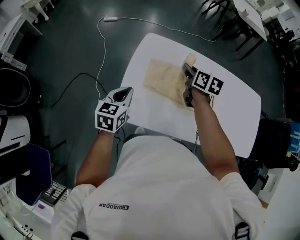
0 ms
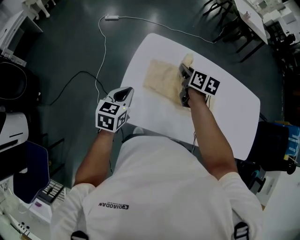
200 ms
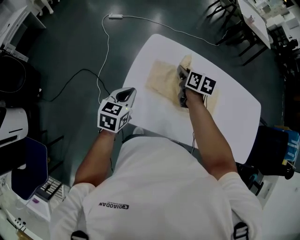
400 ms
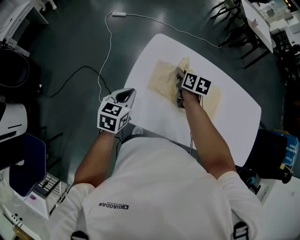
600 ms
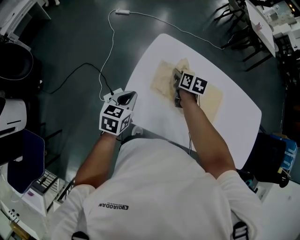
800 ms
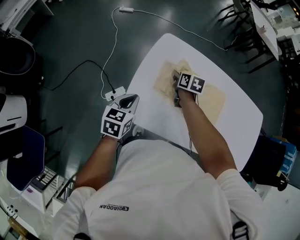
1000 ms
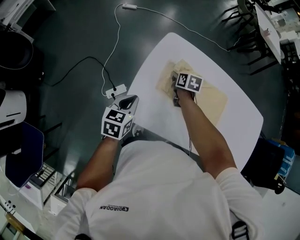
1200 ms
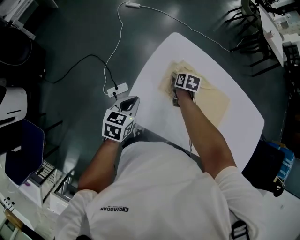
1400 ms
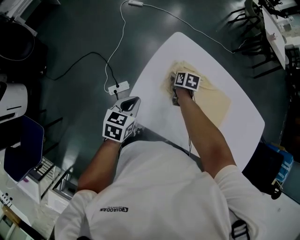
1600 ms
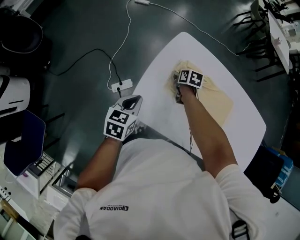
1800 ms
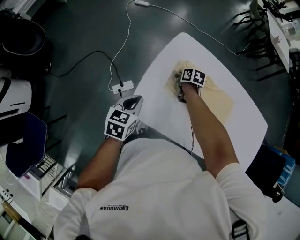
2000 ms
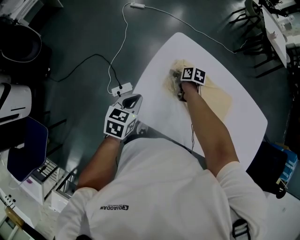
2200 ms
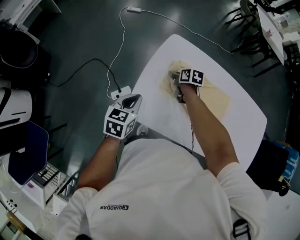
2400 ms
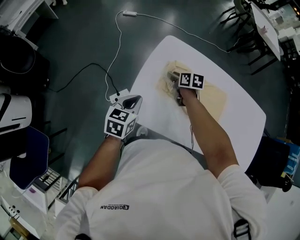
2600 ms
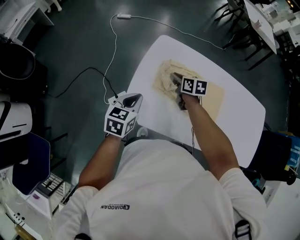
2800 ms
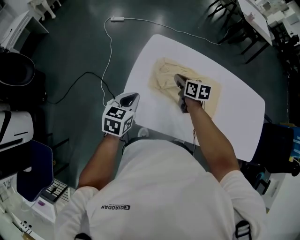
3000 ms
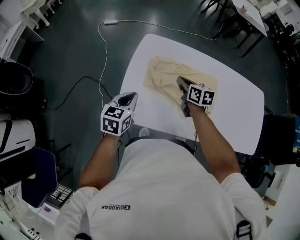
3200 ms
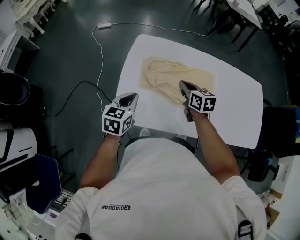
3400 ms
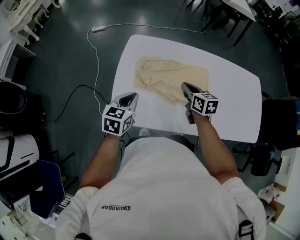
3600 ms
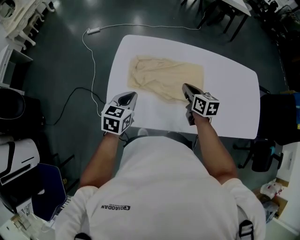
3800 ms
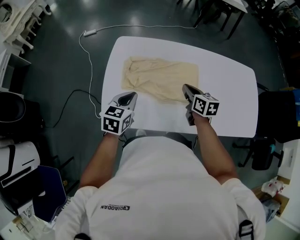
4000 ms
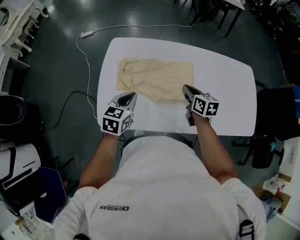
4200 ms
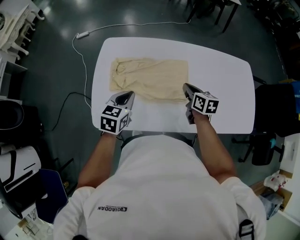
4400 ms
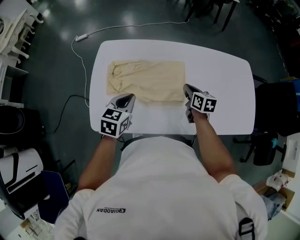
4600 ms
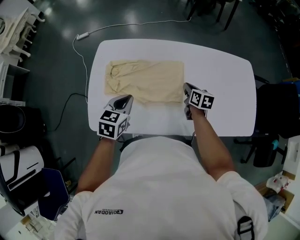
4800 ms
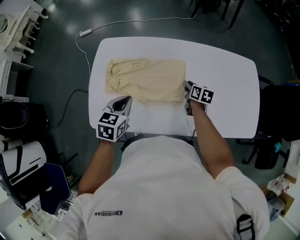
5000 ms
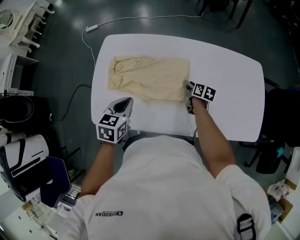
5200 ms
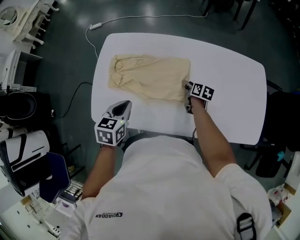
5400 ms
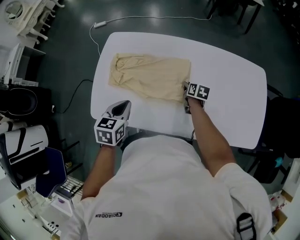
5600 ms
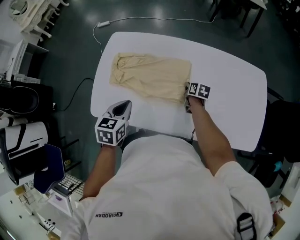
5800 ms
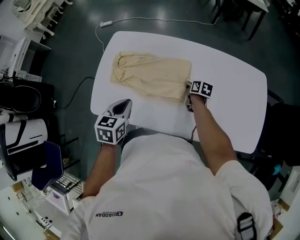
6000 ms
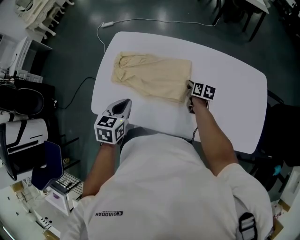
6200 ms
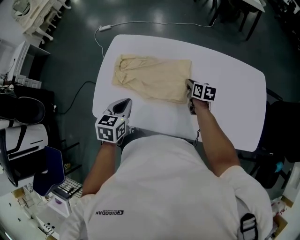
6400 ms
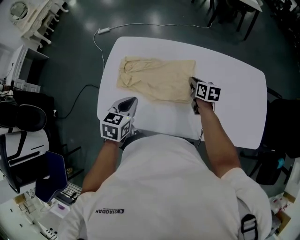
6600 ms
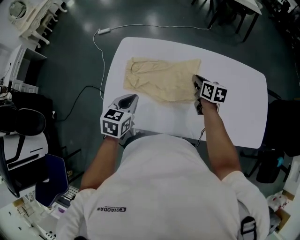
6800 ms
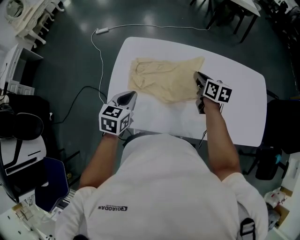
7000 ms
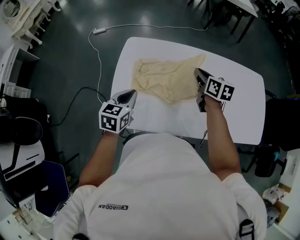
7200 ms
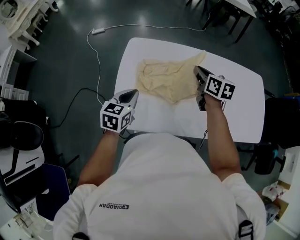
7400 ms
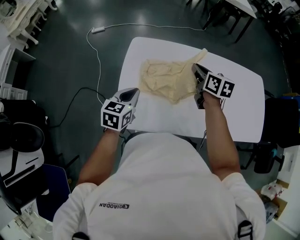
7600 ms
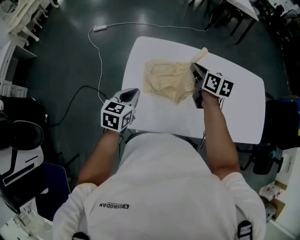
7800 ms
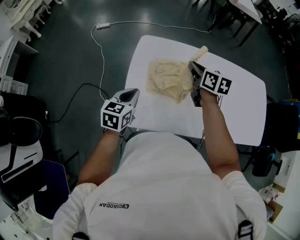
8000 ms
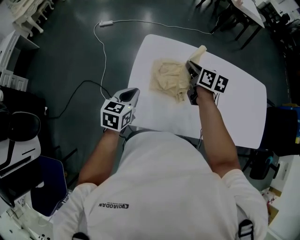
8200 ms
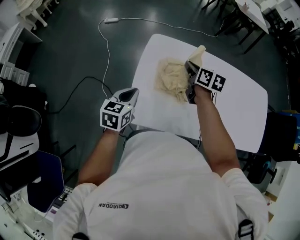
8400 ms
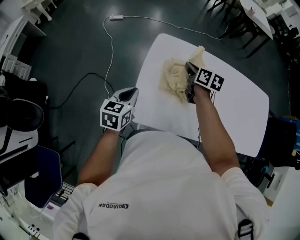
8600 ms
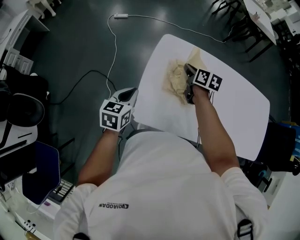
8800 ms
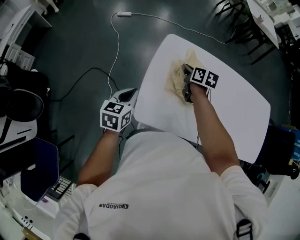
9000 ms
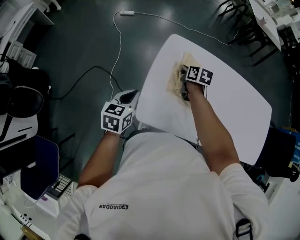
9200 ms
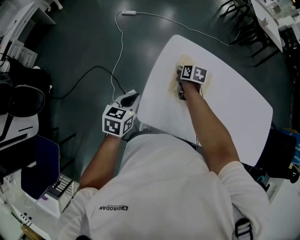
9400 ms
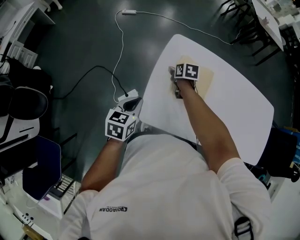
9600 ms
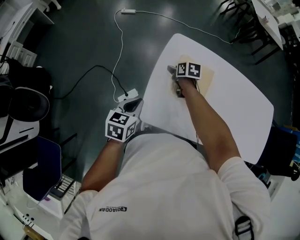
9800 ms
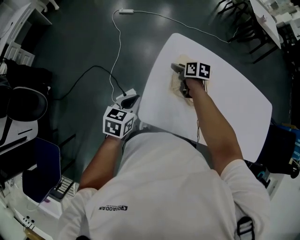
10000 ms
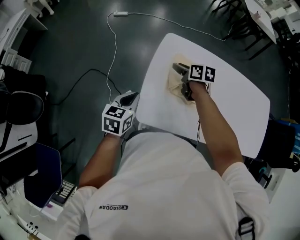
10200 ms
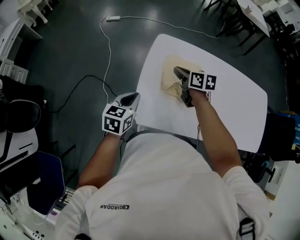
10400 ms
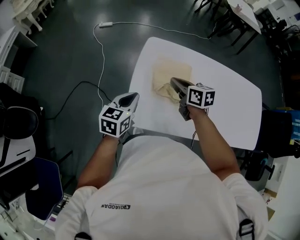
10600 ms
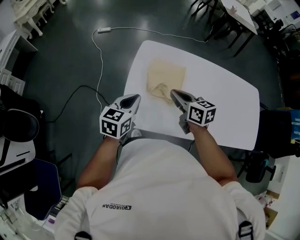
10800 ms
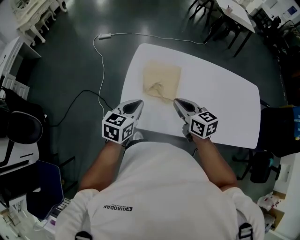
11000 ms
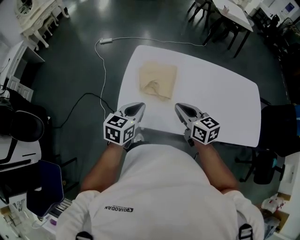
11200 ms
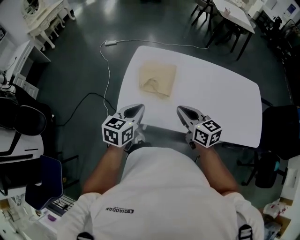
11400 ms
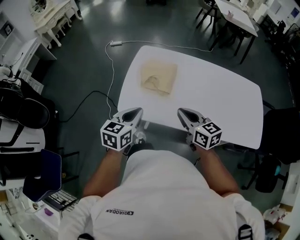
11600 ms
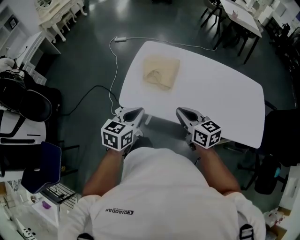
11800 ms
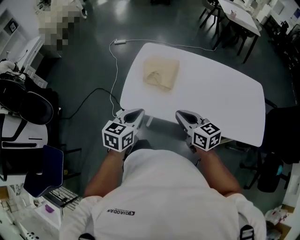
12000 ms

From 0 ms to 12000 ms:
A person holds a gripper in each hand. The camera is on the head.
From 0 ms to 1600 ms: The left gripper heads downward, covering approximately 5 cm; the right gripper moves downward and to the left, roughly 25 cm, and changes its angle by approximately 30 degrees.
From 1600 ms to 3000 ms: The left gripper shifts by approximately 5 cm. The right gripper travels upward, backward and to the right by about 15 cm, changes its angle by roughly 20 degrees, and closes its fingers.
From 3000 ms to 4400 ms: Both grippers move to the right, roughly 25 cm.
From 4400 ms to 6000 ms: The right gripper heads downward, to the right and forward, covering roughly 20 cm, and opens and closes again. The left gripper is displaced to the right and backward by about 10 cm.
From 6000 ms to 7600 ms: The right gripper goes roughly 35 cm upward and to the left, and changes its angle by roughly 30 degrees; the left gripper shifts approximately 20 cm to the left.
From 7600 ms to 9000 ms: The left gripper shifts some 15 cm to the left; the right gripper moves to the left and downward, some 20 cm.
From 9000 ms to 10400 ms: The right gripper reaches about 10 cm downward, then returns, and opens, then closes once more.
From 10400 ms to 12000 ms: The right gripper heads backward and to the right, covering some 40 cm, and changes its angle by roughly 20 degrees. The left gripper goes roughly 30 cm backward, to the right and upward.

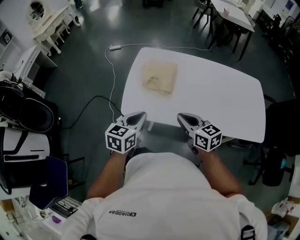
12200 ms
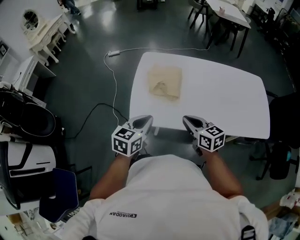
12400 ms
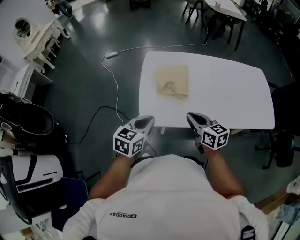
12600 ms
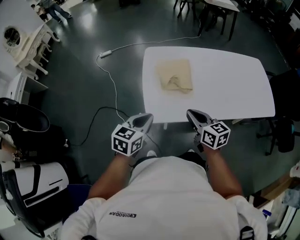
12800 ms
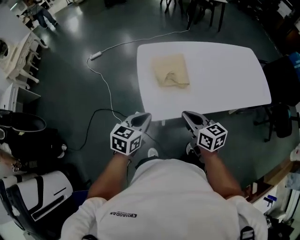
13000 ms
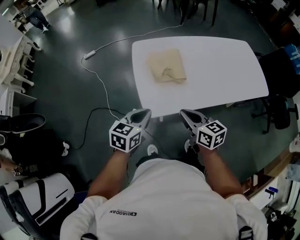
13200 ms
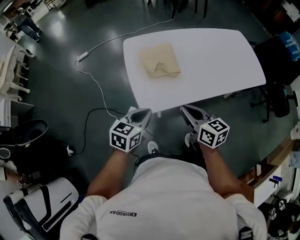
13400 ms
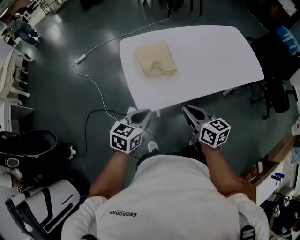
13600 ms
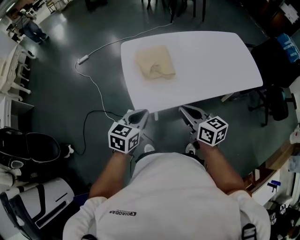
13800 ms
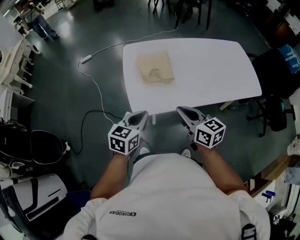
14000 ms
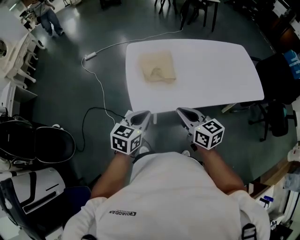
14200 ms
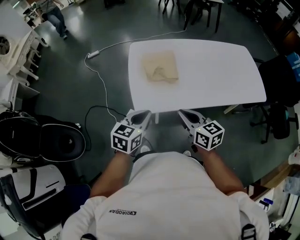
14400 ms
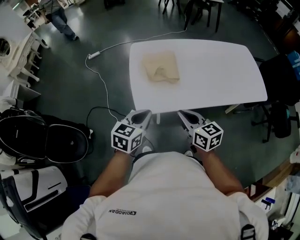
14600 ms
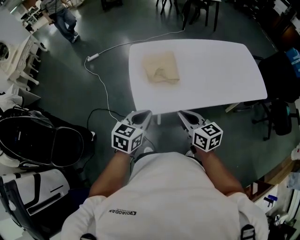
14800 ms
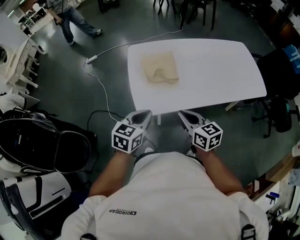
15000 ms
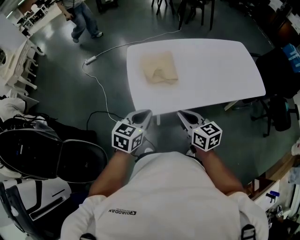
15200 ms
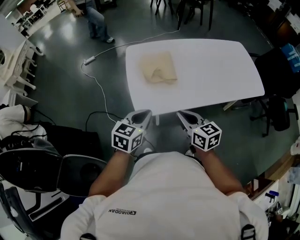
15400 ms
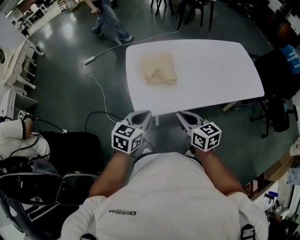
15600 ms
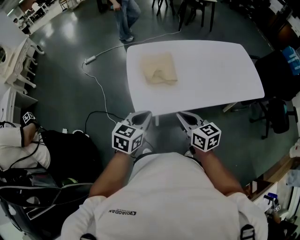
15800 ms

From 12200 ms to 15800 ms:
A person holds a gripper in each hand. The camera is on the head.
From 12200 ms to 14000 ms: The right gripper changes place by about 15 cm, and swivels about 20 degrees; the left gripper rotates some 20 degrees.
From 14000 ms to 15800 ms: The grippers stay close to where they were, moving slightly.

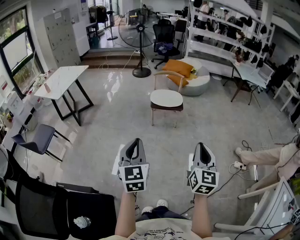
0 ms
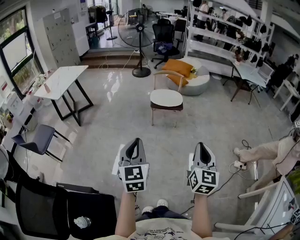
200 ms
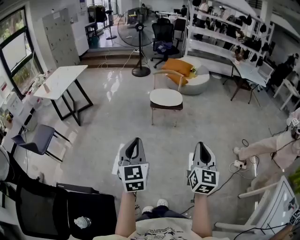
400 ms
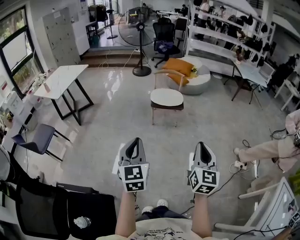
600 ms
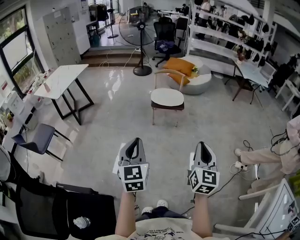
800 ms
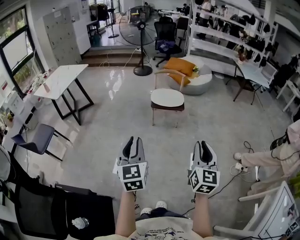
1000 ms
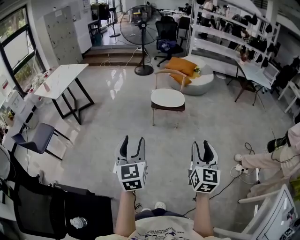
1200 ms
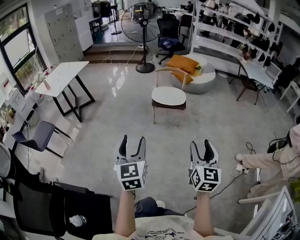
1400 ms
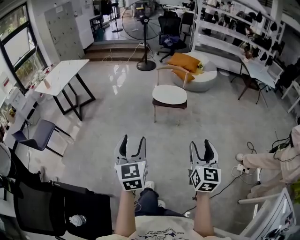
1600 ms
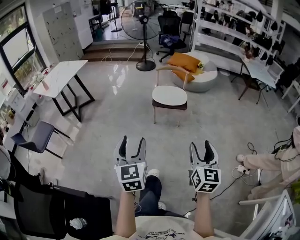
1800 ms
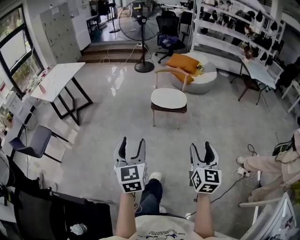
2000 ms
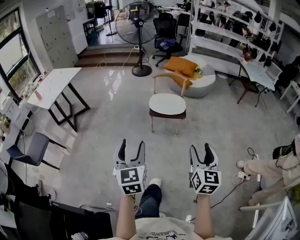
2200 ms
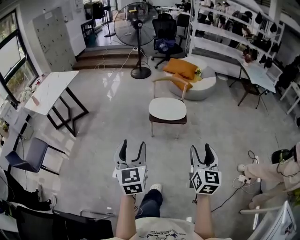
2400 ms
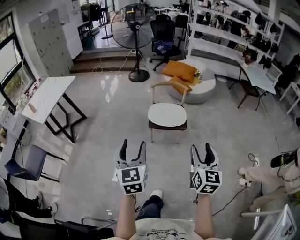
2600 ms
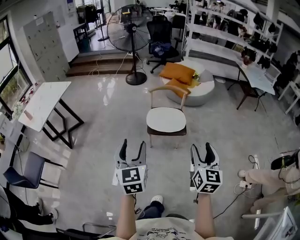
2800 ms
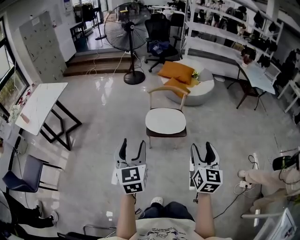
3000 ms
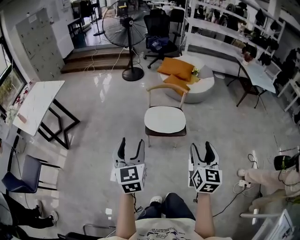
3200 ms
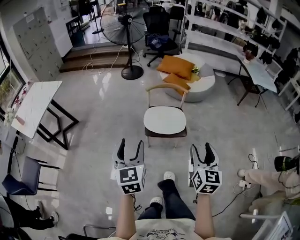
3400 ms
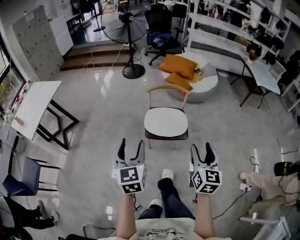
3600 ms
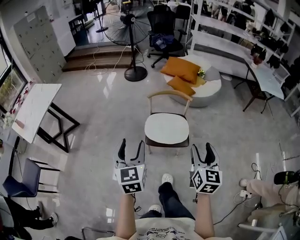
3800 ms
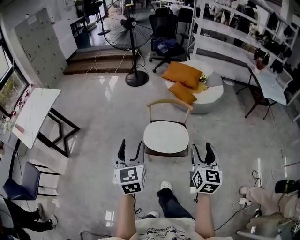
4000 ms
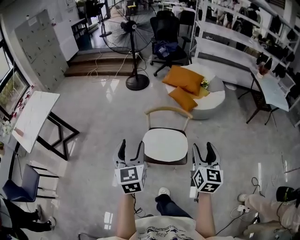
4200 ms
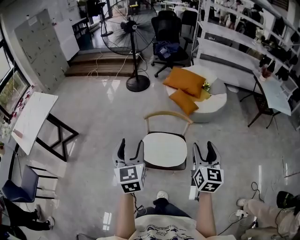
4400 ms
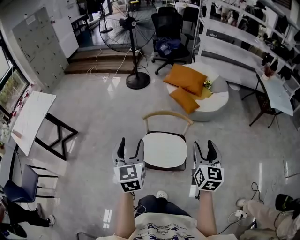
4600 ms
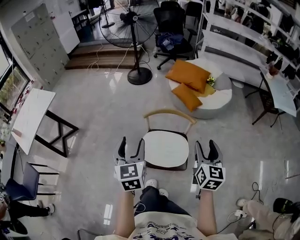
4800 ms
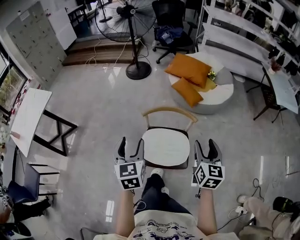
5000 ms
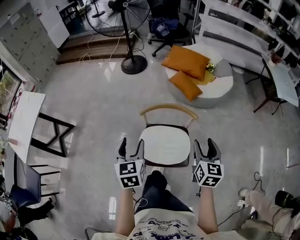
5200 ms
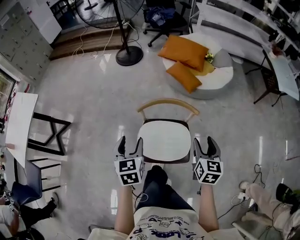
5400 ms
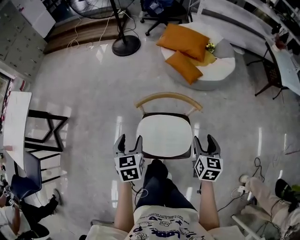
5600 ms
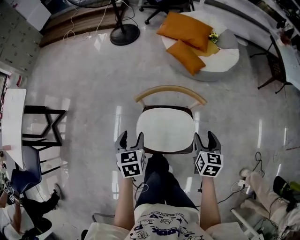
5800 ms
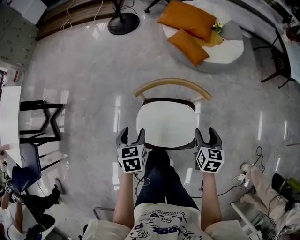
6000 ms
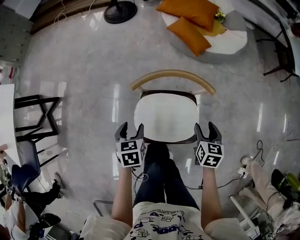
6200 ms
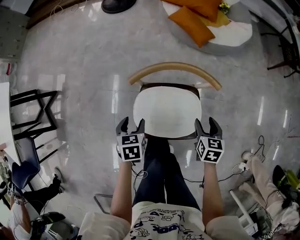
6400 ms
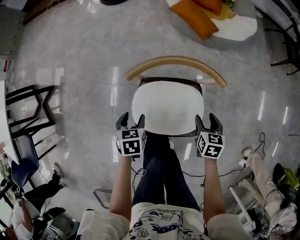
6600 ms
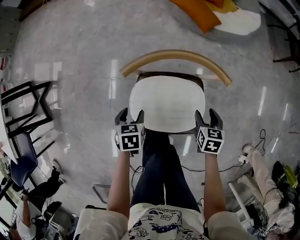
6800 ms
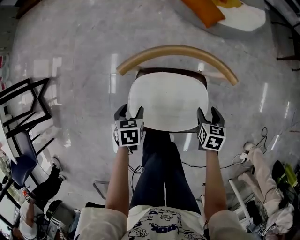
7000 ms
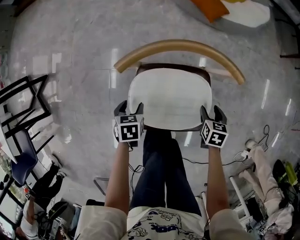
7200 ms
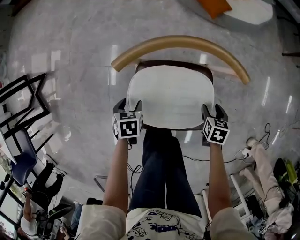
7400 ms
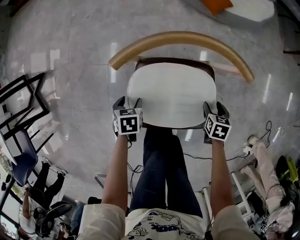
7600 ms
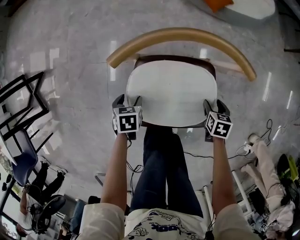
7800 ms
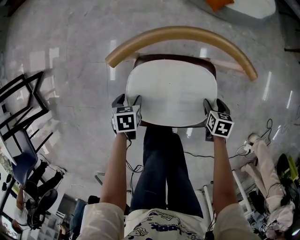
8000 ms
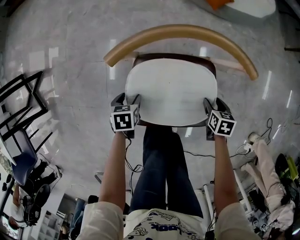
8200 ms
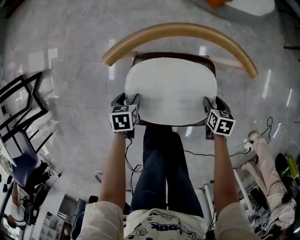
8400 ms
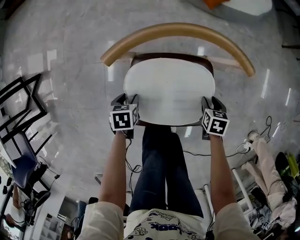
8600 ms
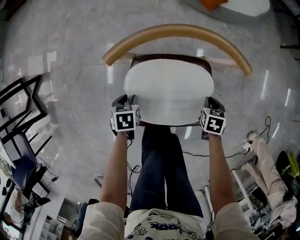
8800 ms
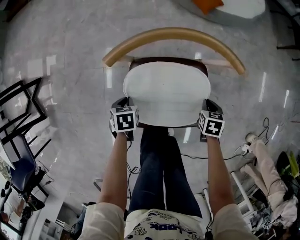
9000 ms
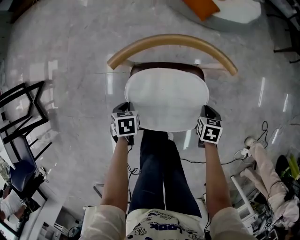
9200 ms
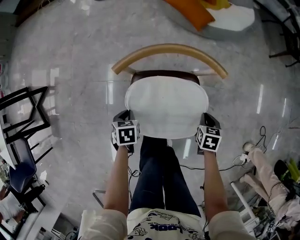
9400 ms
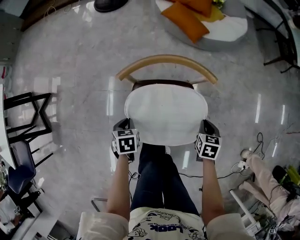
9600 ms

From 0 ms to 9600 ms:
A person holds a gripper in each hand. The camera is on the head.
From 0 ms to 1600 ms: Both grippers move forward, some 10 cm. The right gripper opens its fingers, while the left gripper opens.
From 1600 ms to 3200 ms: The pair of grippers is taken forward, approximately 50 cm.
From 3200 ms to 4800 ms: The two grippers travel together, forward, about 50 cm.
From 4800 ms to 6400 ms: The two grippers go some 50 cm downward and forward. The left gripper tilts its fingers roughly 40 degrees downward, while the right gripper angles its fingers downward, by some 40 degrees.
From 6400 ms to 8000 ms: Both grippers move downward, roughly 25 cm.
From 8000 ms to 9600 ms: The two grippers go roughly 20 cm upward. The left gripper closes. Meanwhile the right gripper closes its fingers.
